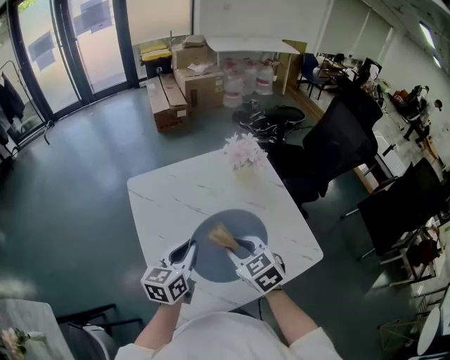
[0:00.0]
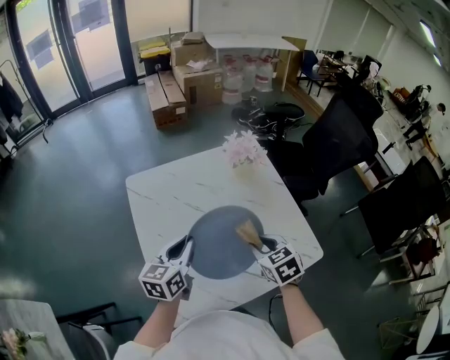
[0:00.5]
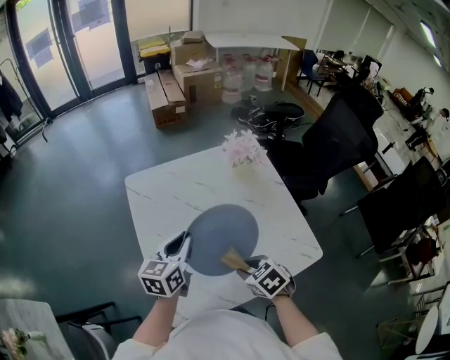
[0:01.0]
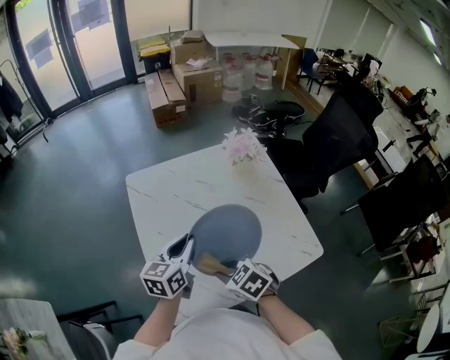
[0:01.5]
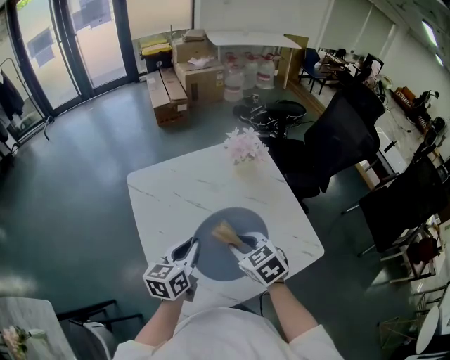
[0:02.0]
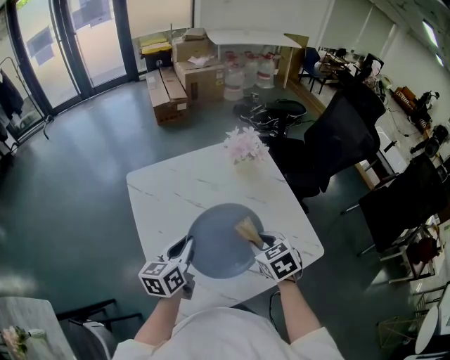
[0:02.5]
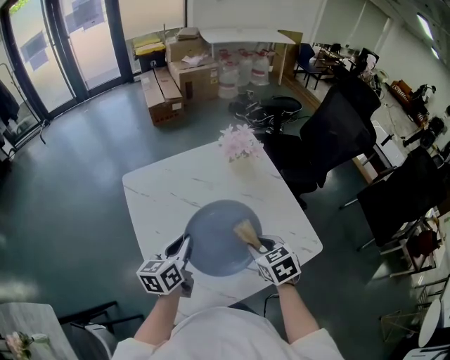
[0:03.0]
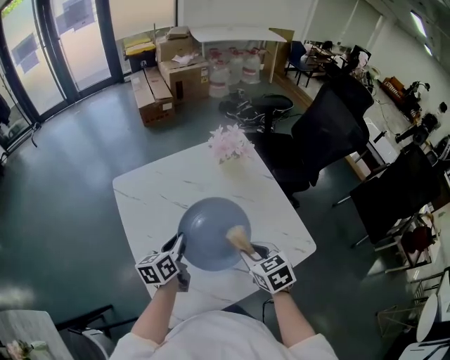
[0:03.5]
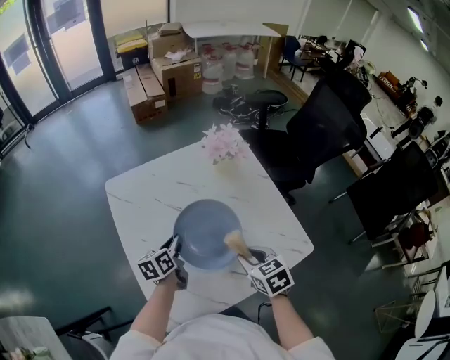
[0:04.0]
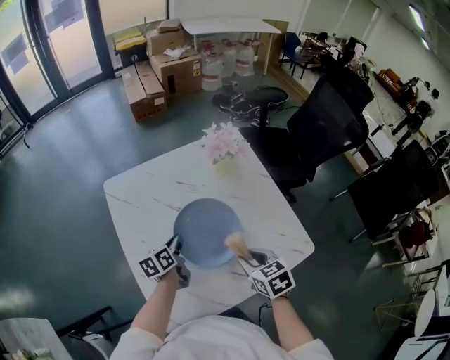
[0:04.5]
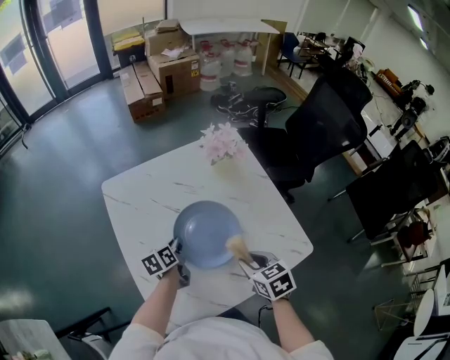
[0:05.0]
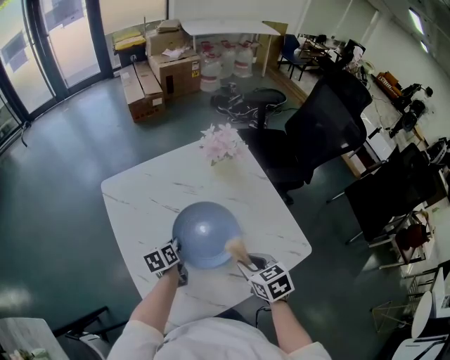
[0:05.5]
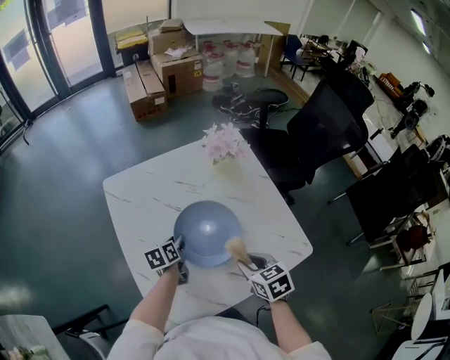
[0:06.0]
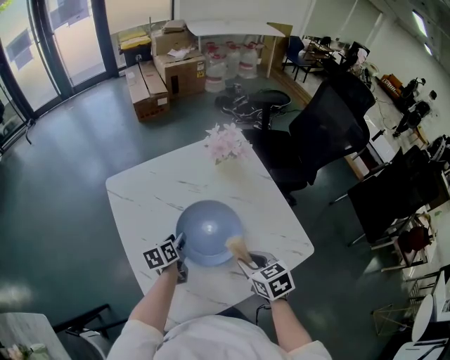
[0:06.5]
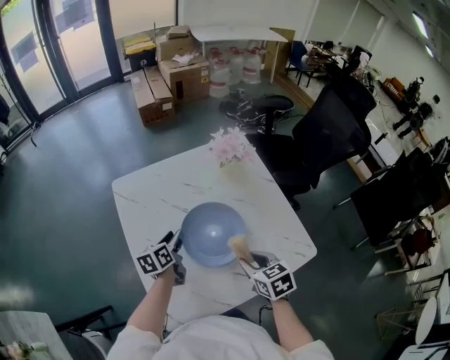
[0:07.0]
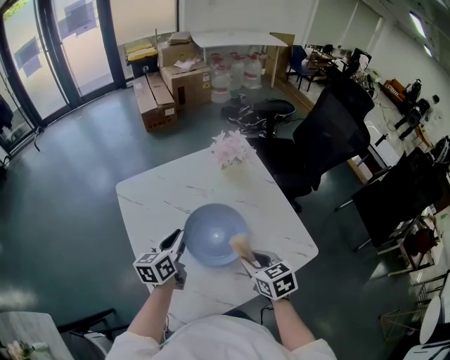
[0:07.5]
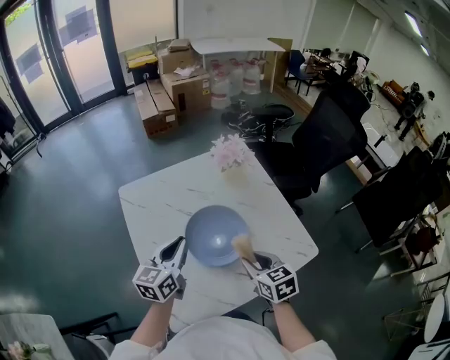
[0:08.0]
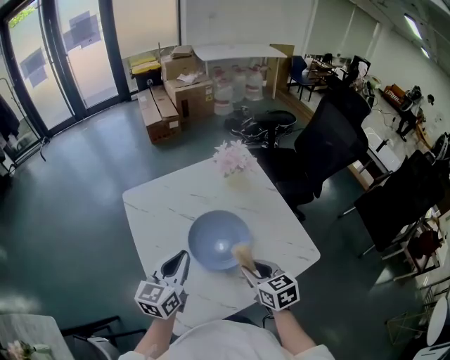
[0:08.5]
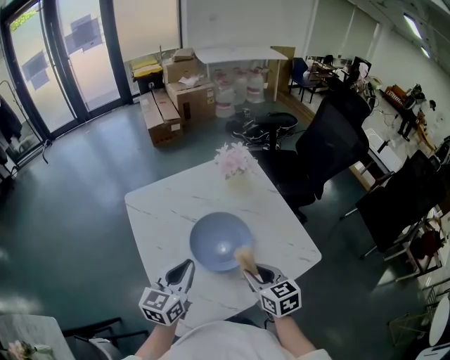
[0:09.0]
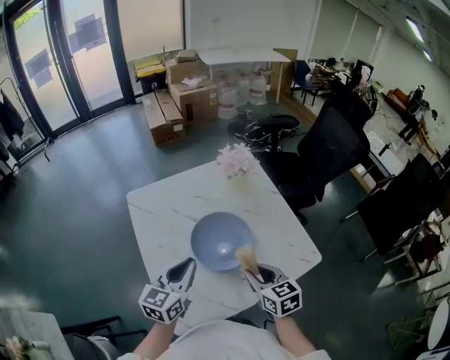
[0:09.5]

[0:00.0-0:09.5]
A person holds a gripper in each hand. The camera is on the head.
0.0 to 2.0 s: The right gripper swings left and right, about 15 cm each way, with 2 reversals.
2.0 to 4.0 s: The left gripper is displaced downward and forward by approximately 15 cm, and rotates some 20 degrees. Meanwhile the right gripper goes some 10 cm to the right.
4.0 to 5.5 s: The left gripper goes approximately 5 cm downward.
5.5 to 7.5 s: The left gripper shifts about 15 cm upward, swivels approximately 30 degrees, and opens and closes again.
7.5 to 9.5 s: The left gripper goes some 15 cm backward and upward, and turns by some 20 degrees.

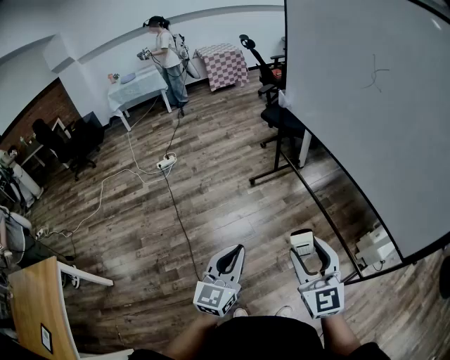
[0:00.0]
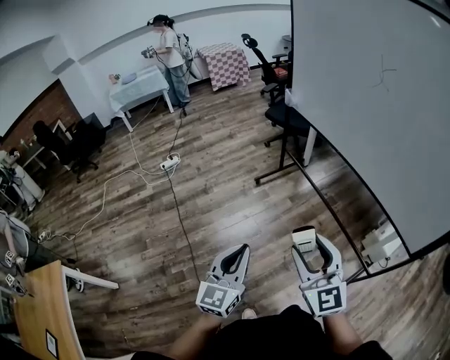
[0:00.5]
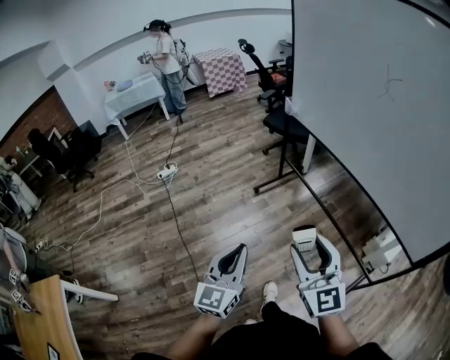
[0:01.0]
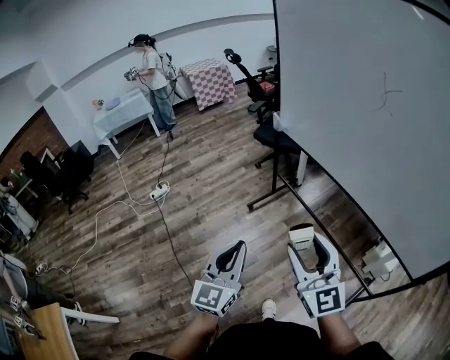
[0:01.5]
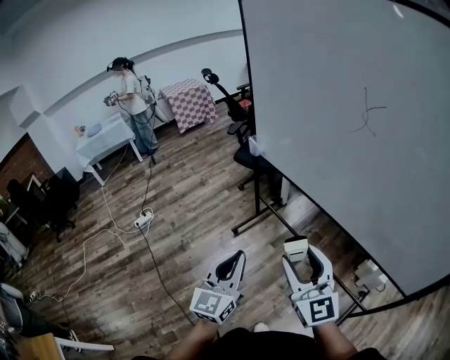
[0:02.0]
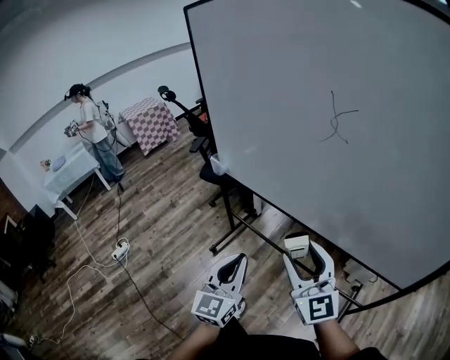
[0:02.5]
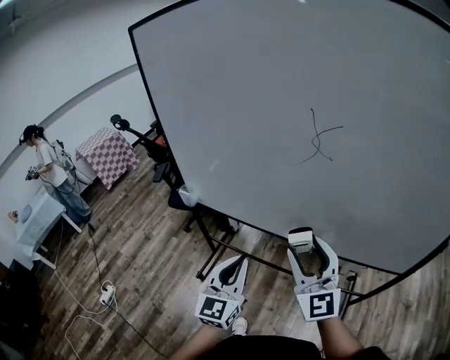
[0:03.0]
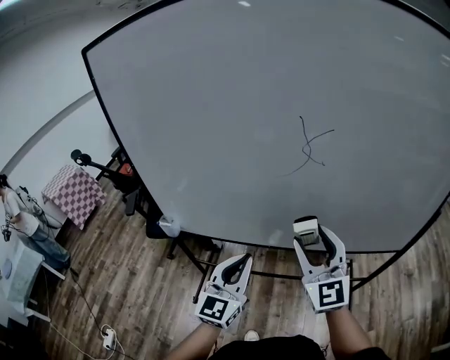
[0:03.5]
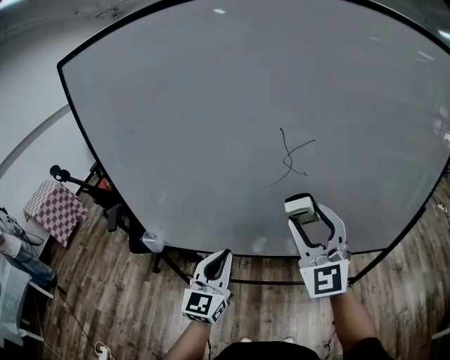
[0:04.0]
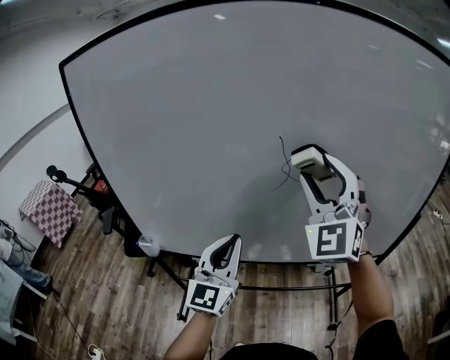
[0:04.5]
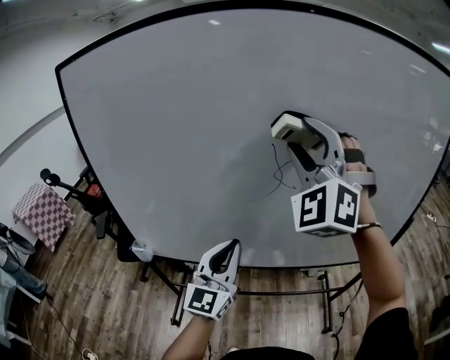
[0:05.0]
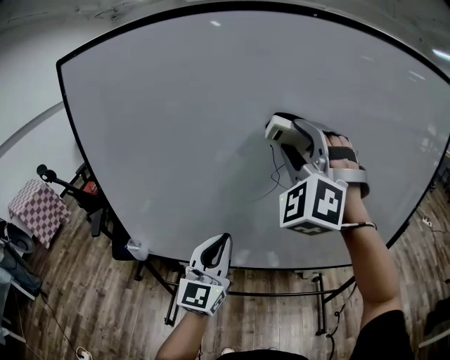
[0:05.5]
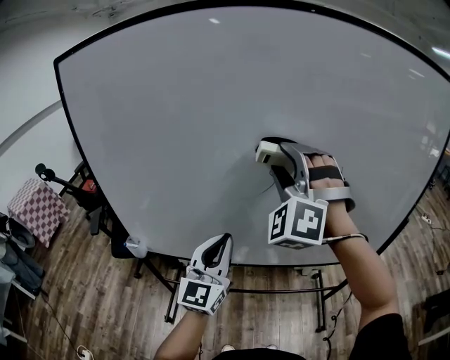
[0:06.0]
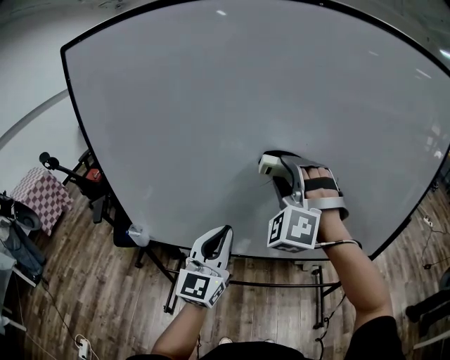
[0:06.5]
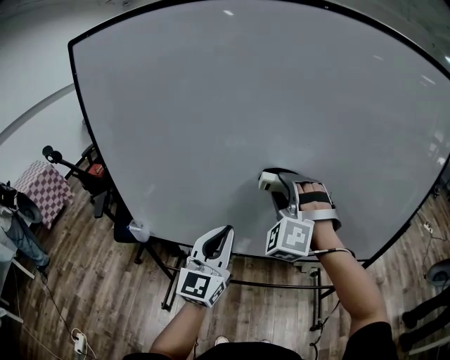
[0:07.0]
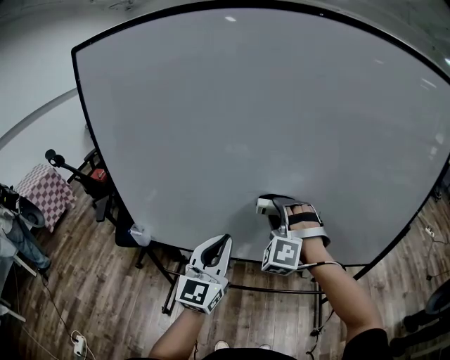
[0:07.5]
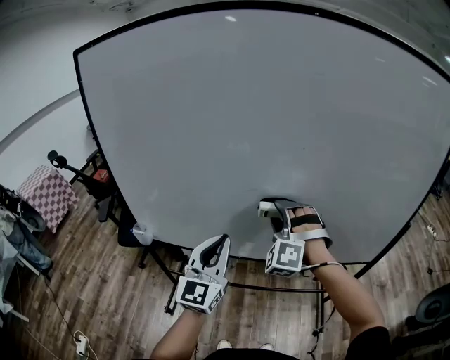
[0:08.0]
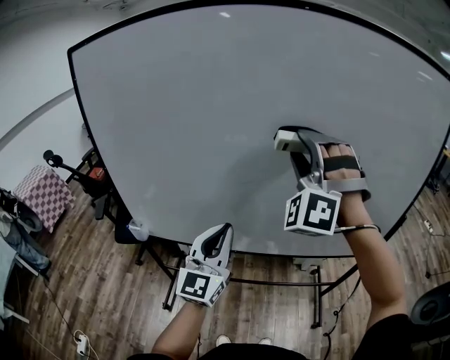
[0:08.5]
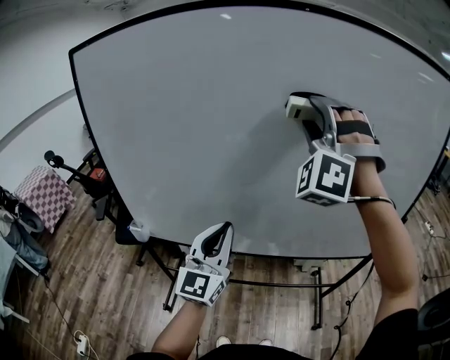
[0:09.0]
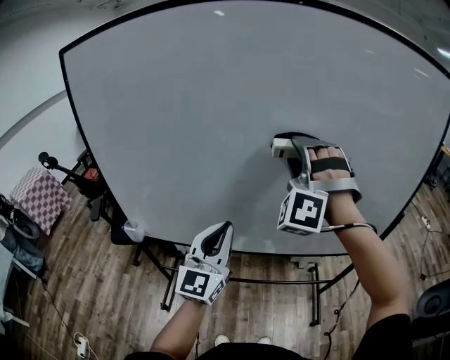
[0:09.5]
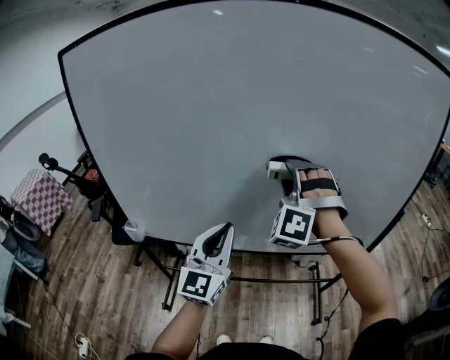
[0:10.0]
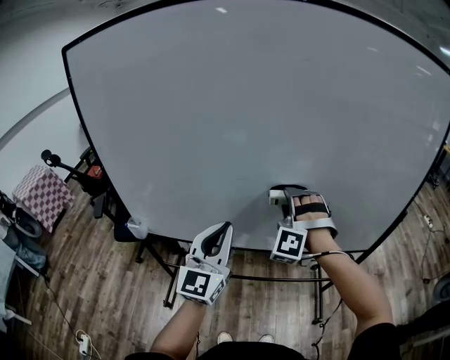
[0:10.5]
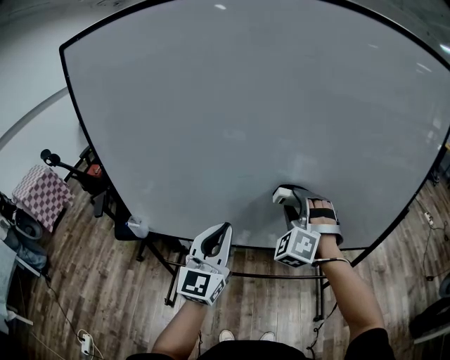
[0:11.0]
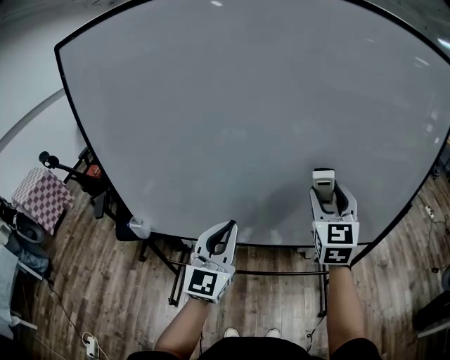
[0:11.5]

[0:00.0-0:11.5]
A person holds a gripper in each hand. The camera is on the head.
0.0 to 2.0 s: The two grippers go about 30 cm forward.
2.0 to 4.0 s: The left gripper shifts by some 35 cm, and changes its angle by approximately 50 degrees, while the right gripper ends up roughly 30 cm from where it was, and changes its angle by about 60 degrees.
4.0 to 6.0 s: The left gripper moves upward, about 5 cm. Meanwhile the right gripper travels upward and forward by some 15 cm, and rolls counterclockwise, seen from behind, by roughly 50 degrees.
6.0 to 7.5 s: The right gripper heads downward, covering approximately 20 cm.
7.5 to 9.5 s: The right gripper heads upward, covering about 15 cm.
9.5 to 11.5 s: The right gripper shifts roughly 15 cm downward and to the right, and rolls clockwise, seen from behind, by roughly 70 degrees.

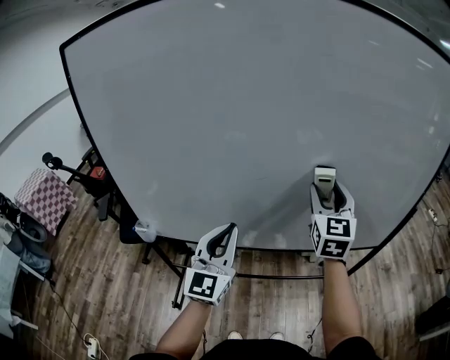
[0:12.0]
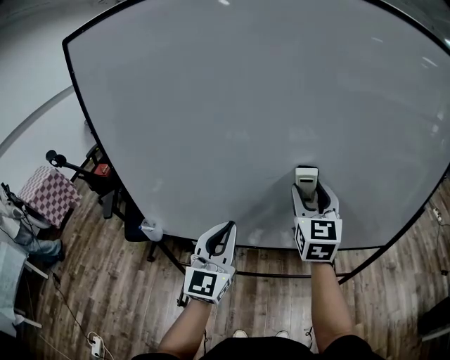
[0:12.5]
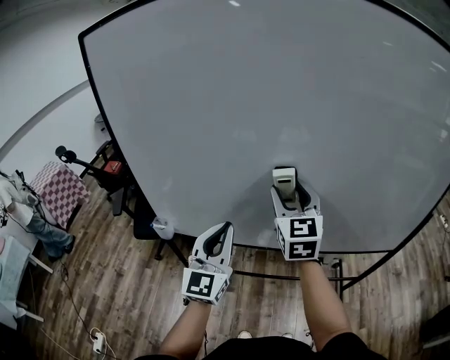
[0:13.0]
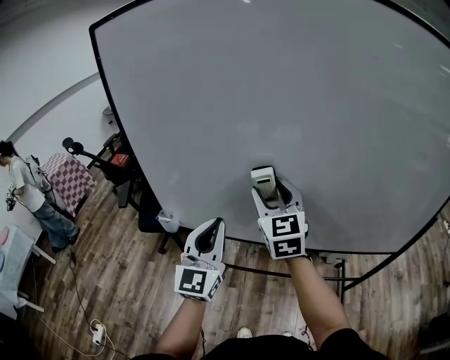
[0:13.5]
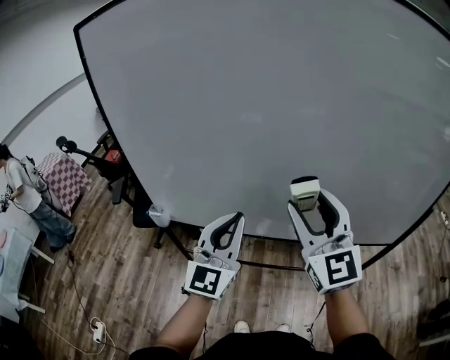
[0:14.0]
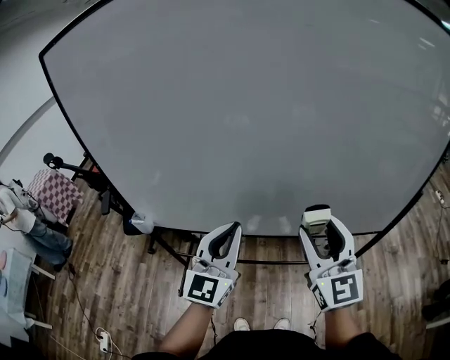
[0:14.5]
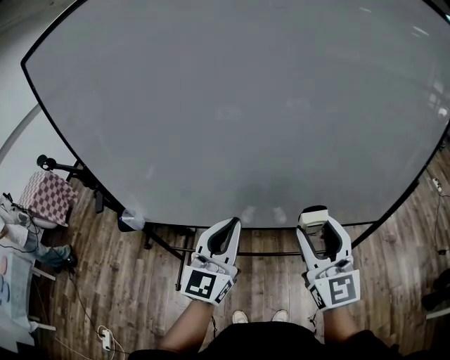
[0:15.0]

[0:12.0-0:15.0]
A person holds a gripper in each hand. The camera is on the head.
12.0 to 13.5 s: The left gripper is displaced to the left by approximately 10 cm; the right gripper goes approximately 25 cm to the left, and rotates about 30 degrees.
13.5 to 15.0 s: The right gripper shifts about 30 cm to the right and backward. The left gripper heads to the right, covering approximately 20 cm.

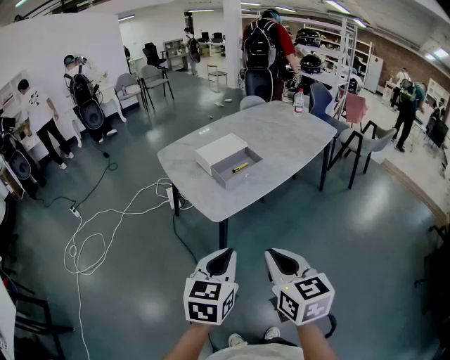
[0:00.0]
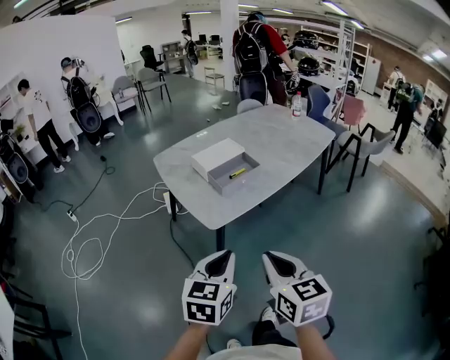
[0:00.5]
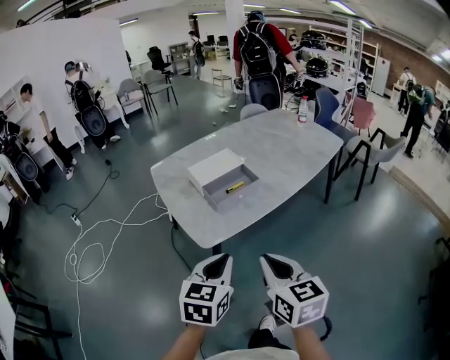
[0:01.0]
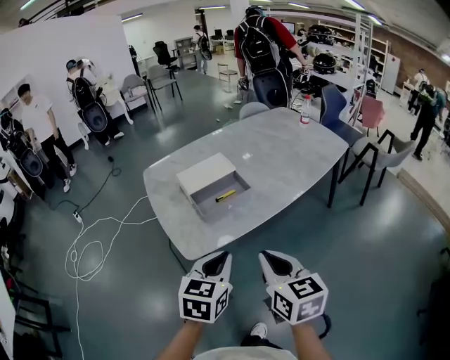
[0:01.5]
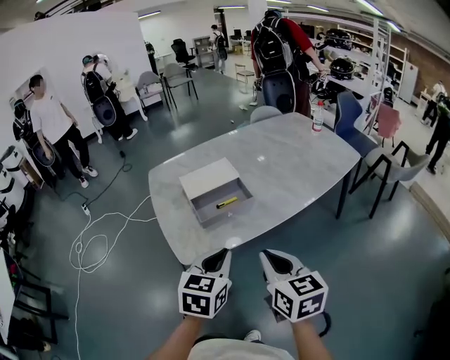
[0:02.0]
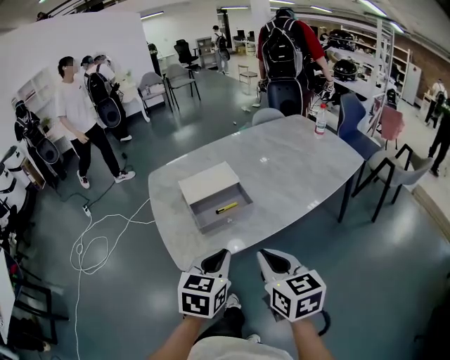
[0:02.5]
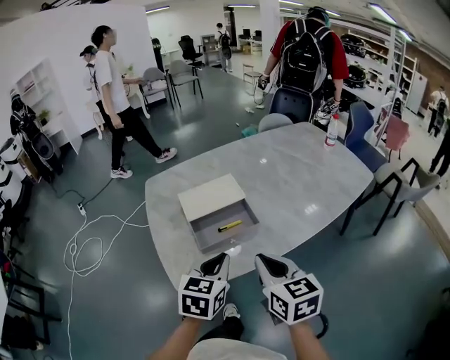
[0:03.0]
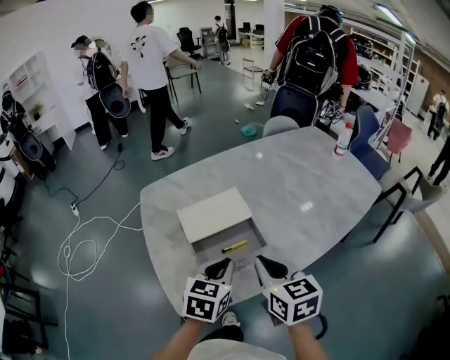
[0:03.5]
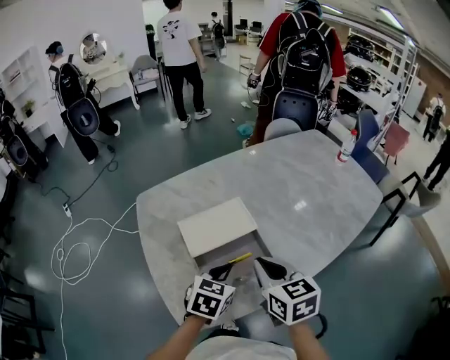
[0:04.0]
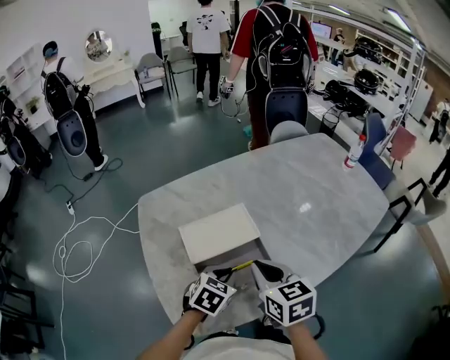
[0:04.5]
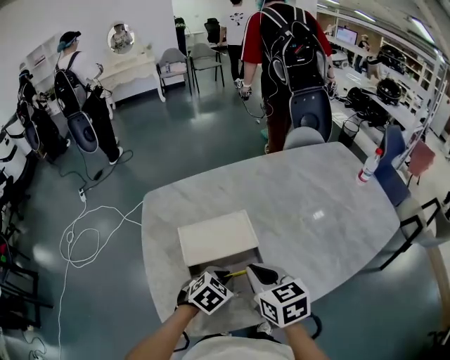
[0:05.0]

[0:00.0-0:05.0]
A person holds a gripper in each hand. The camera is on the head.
0.0 to 2.5 s: Both grippers travel together forward and to the right, some 30 cm.
2.5 to 5.0 s: The right gripper is displaced forward by roughly 30 cm, and changes its angle by about 20 degrees, while the left gripper heads forward and downward, covering approximately 30 cm, and swivels some 30 degrees.
